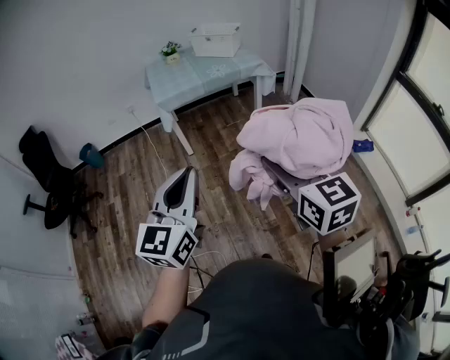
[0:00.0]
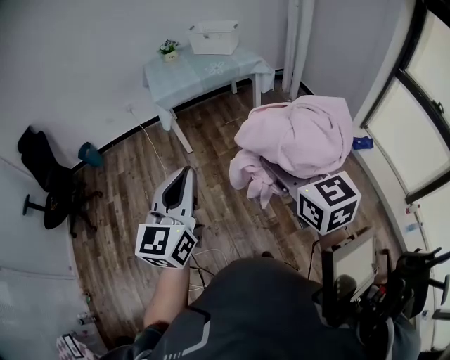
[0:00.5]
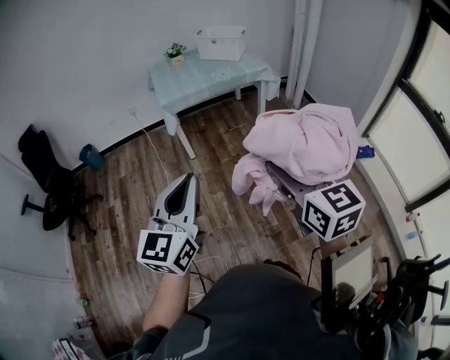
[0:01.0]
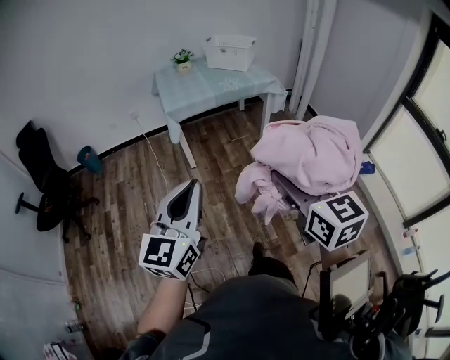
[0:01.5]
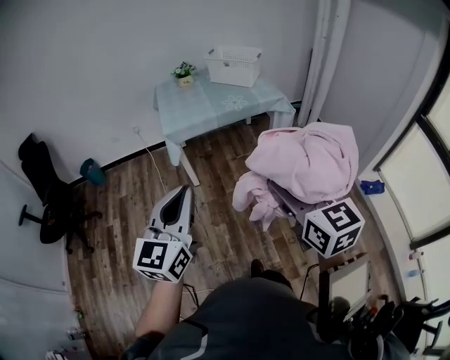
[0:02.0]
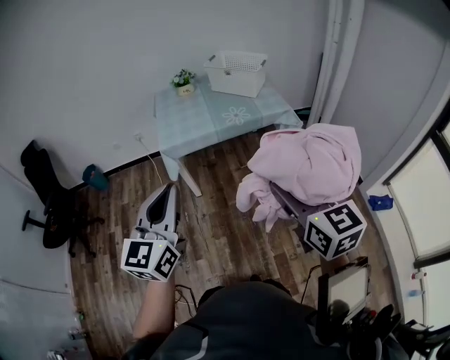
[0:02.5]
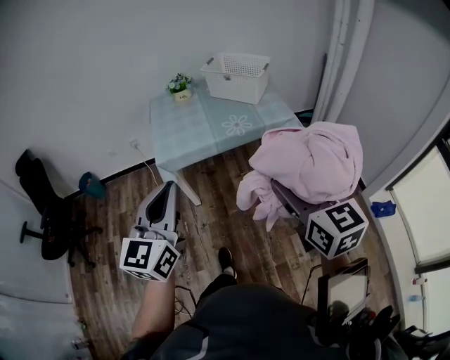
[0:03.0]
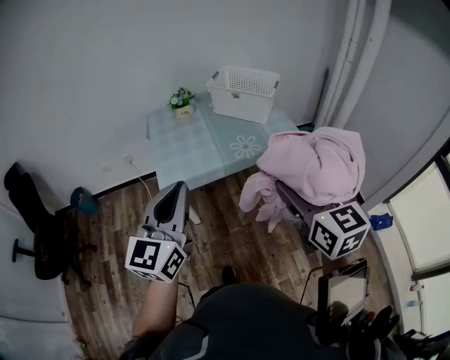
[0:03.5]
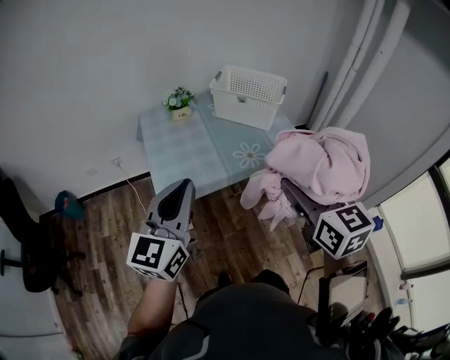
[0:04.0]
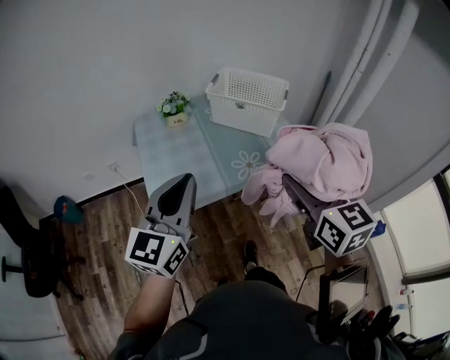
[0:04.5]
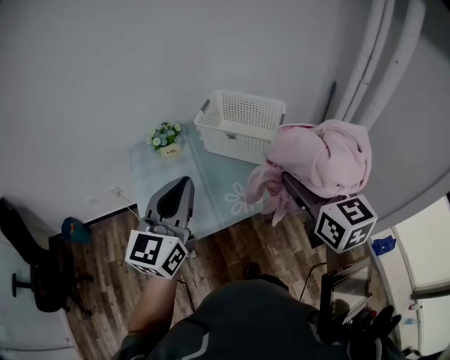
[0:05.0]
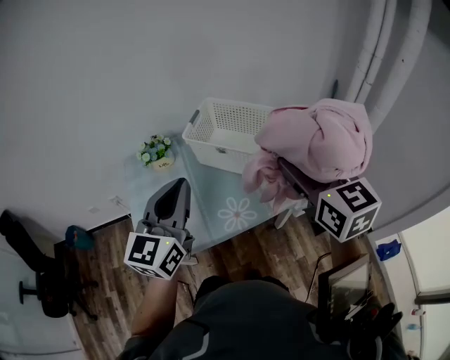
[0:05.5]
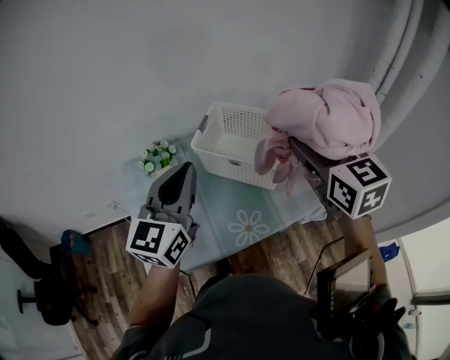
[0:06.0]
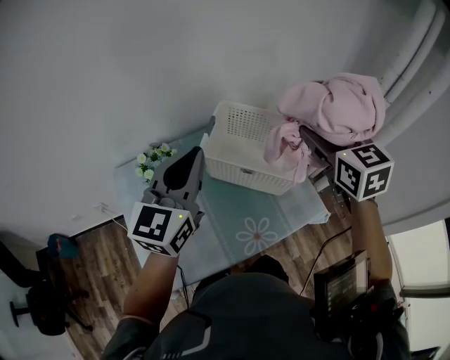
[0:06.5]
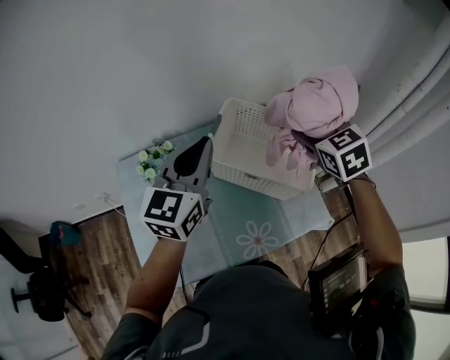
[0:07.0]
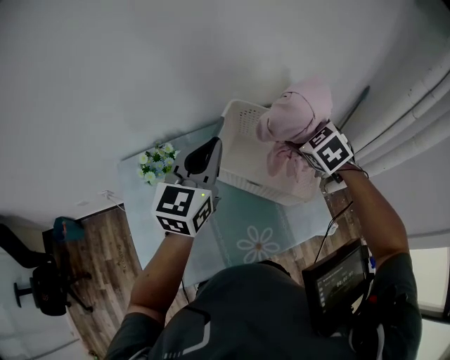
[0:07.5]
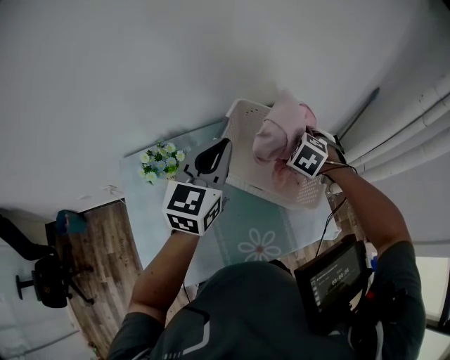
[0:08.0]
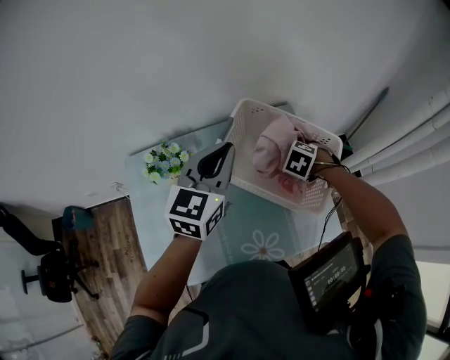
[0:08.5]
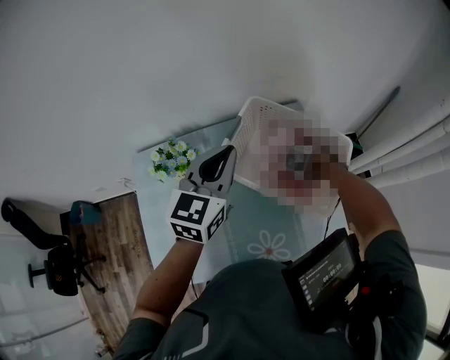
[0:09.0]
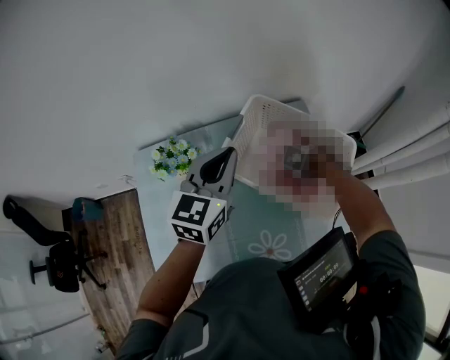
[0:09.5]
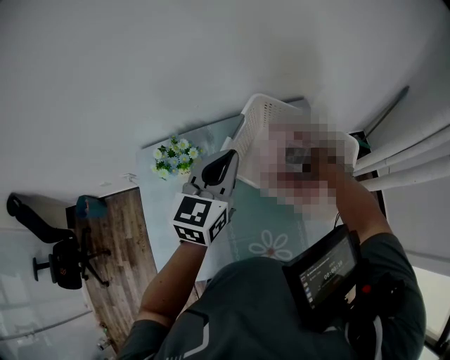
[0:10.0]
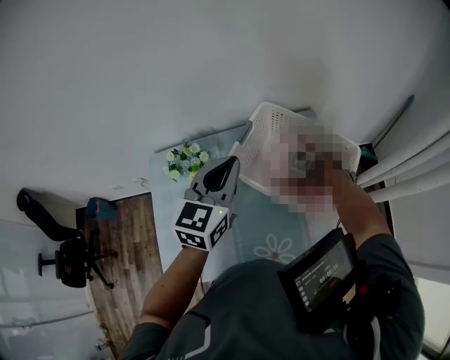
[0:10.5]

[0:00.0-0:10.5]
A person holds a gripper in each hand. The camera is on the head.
0:00.0 to 0:02.0: The grippers both shift forward by about 15 cm.
0:02.0 to 0:04.0: Both grippers move forward, approximately 35 cm.
0:04.0 to 0:06.5: The pair of grippers is taken forward, roughly 40 cm.
0:06.5 to 0:08.5: The left gripper shifts by roughly 15 cm. Meanwhile the right gripper moves downward, approximately 35 cm, and points its fingers roughly 60 degrees further downward.
0:08.5 to 0:10.5: The right gripper shifts some 10 cm downward.

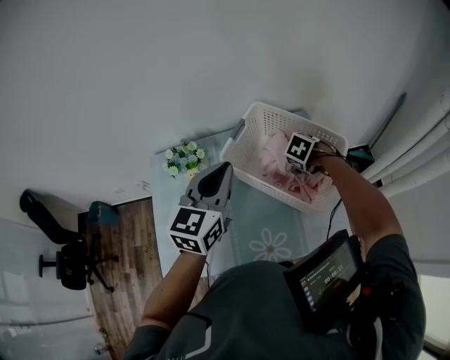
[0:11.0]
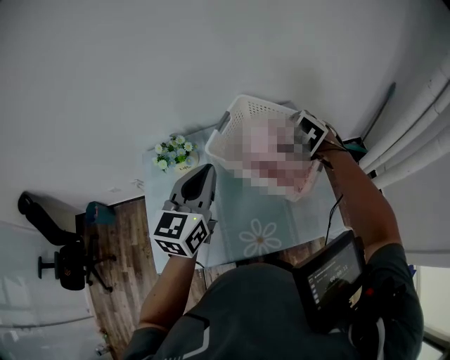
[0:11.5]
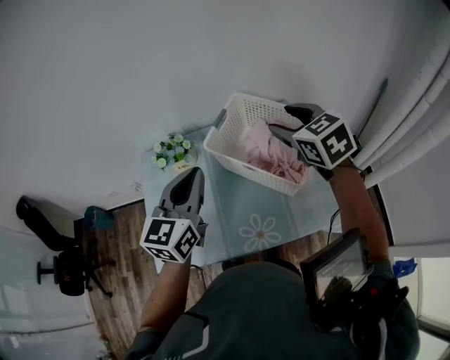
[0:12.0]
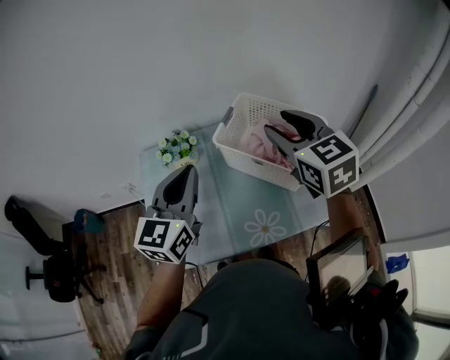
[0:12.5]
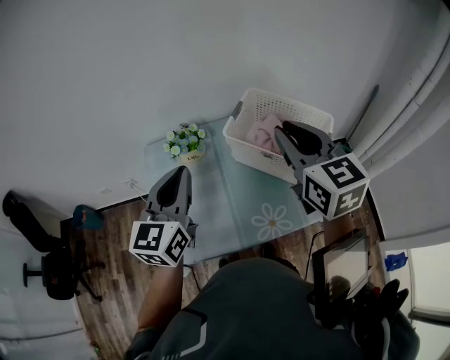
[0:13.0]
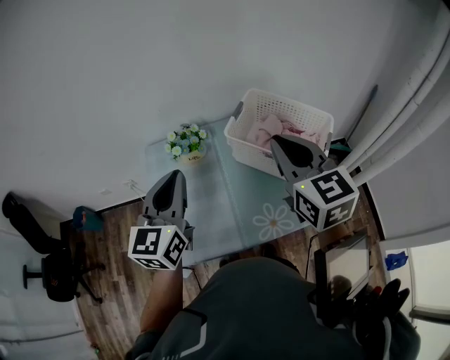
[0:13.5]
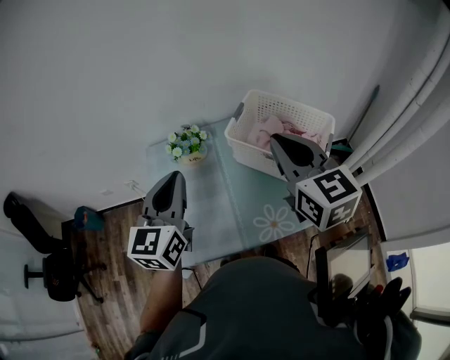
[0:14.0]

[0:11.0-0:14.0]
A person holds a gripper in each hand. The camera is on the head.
0:11.0 to 0:12.5: The right gripper goes some 30 cm upward, points its fingers roughly 60 degrees further upward, and closes up, while the left gripper changes place by about 15 cm.
0:12.5 to 0:14.0: The left gripper heads to the left, covering roughly 5 cm. The right gripper is displaced backward and to the left by some 10 cm, and closes up.

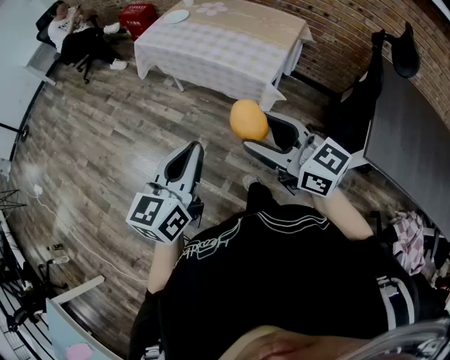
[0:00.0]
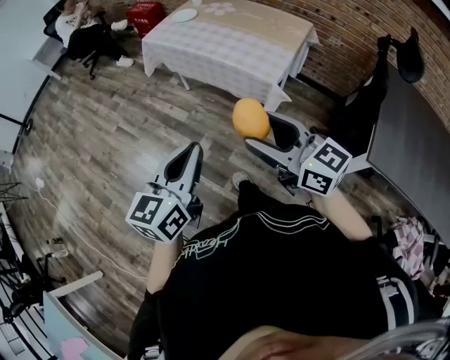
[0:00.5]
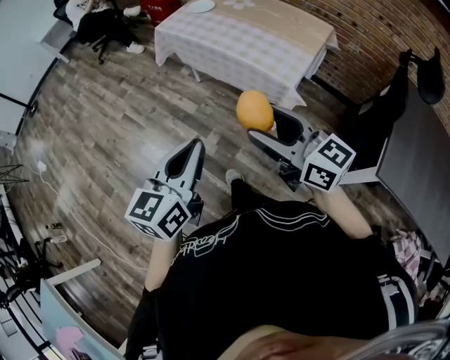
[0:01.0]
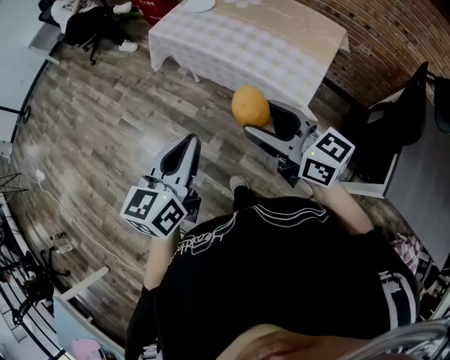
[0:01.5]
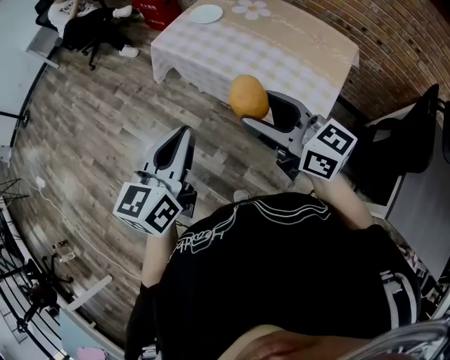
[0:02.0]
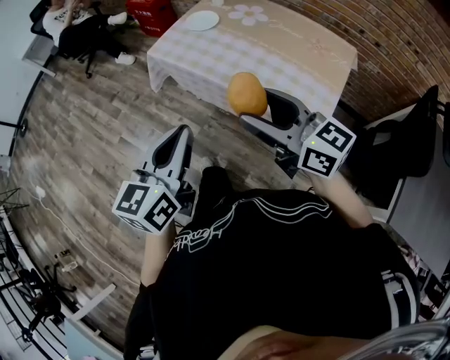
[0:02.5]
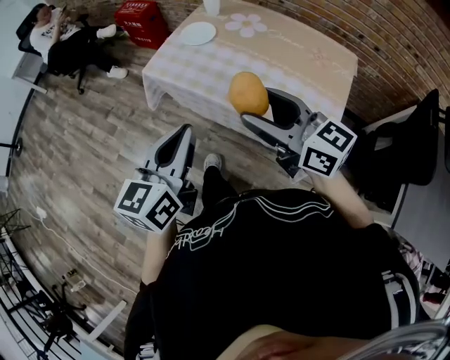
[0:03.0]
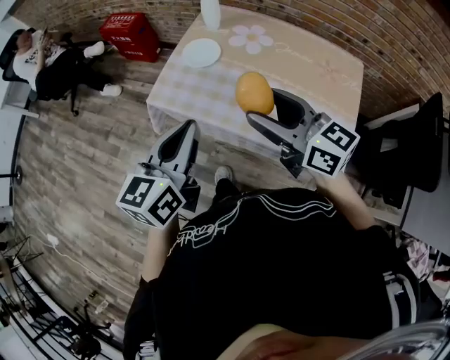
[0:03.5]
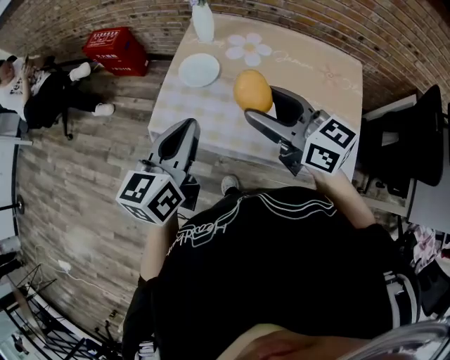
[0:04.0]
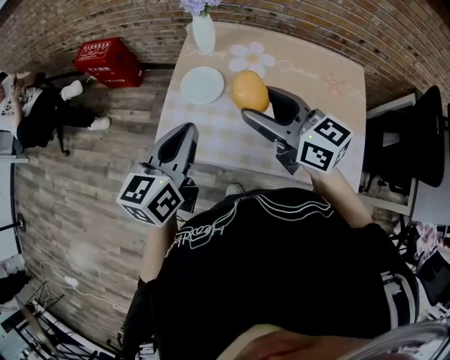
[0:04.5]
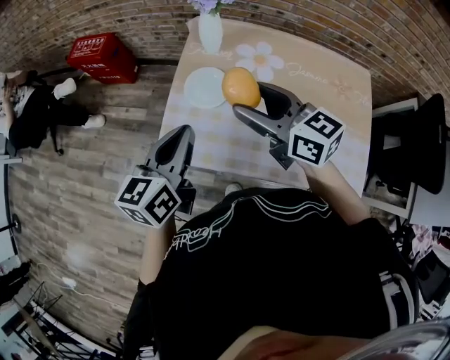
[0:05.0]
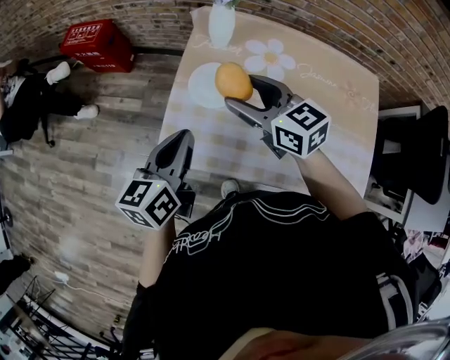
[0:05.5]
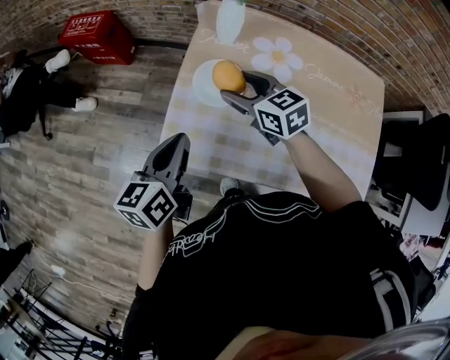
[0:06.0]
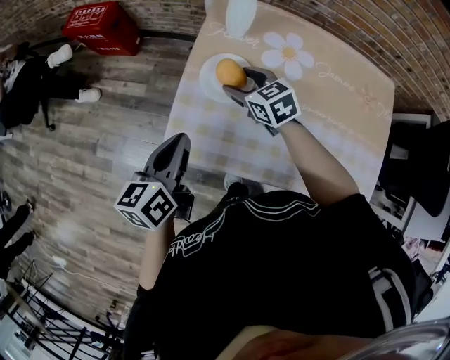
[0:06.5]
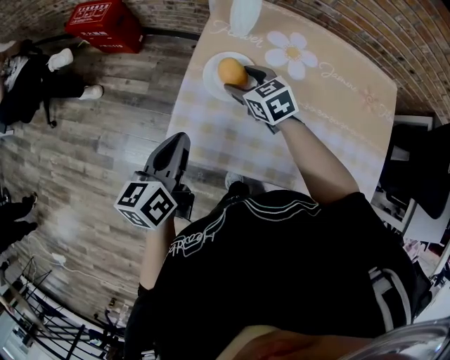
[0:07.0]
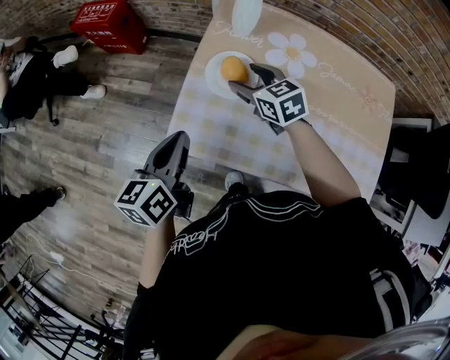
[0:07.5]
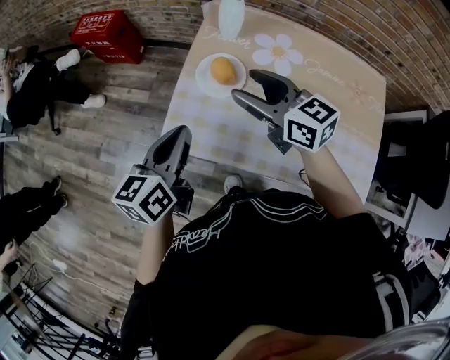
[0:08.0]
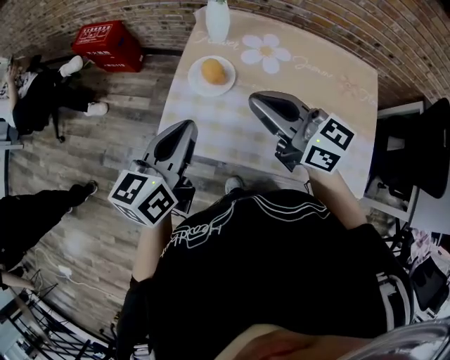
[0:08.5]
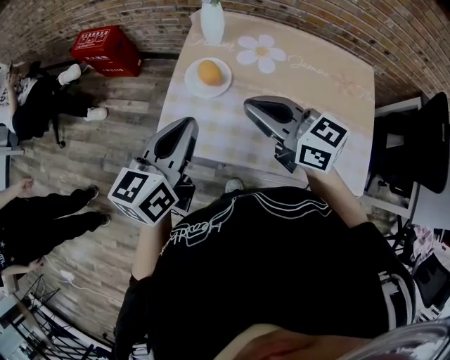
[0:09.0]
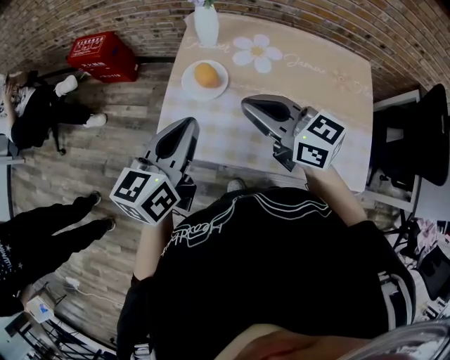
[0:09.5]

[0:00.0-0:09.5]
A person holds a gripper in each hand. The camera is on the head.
0:00.0 to 0:02.0: Both grippers move forward, about 35 cm.
0:02.0 to 0:04.0: The two grippers go roughly 40 cm forward. The left gripper changes its angle by approximately 20 degrees. The right gripper rotates approximately 20 degrees.
0:04.0 to 0:05.5: The grippers both shift forward, downward and to the left by some 25 cm.
0:05.5 to 0:07.5: The right gripper heads downward and forward, covering some 15 cm; the left gripper is displaced to the left by roughly 5 cm.
0:07.5 to 0:09.5: The left gripper heads upward and to the right, covering about 15 cm, and changes its angle by about 20 degrees. The right gripper moves upward and backward, approximately 25 cm, swivels some 30 degrees, and closes its fingers.

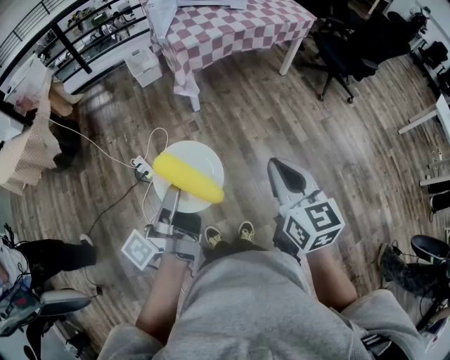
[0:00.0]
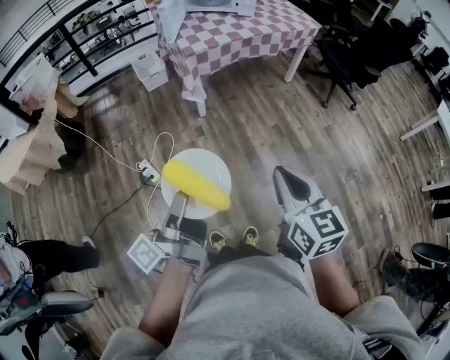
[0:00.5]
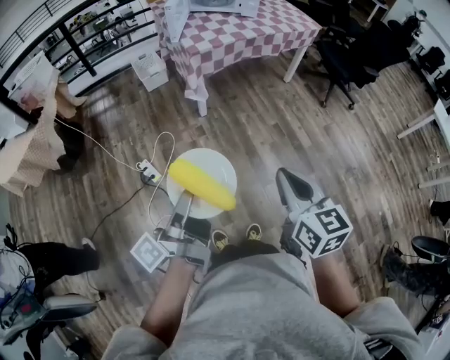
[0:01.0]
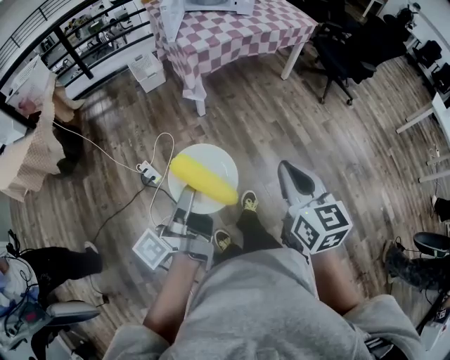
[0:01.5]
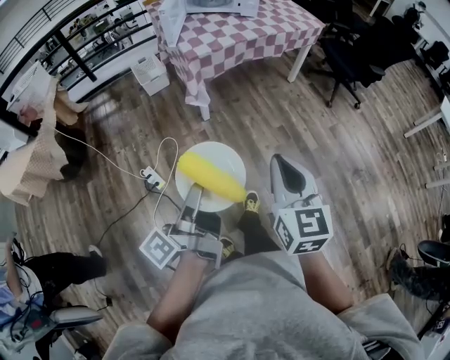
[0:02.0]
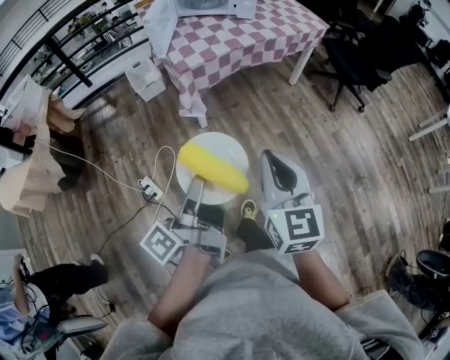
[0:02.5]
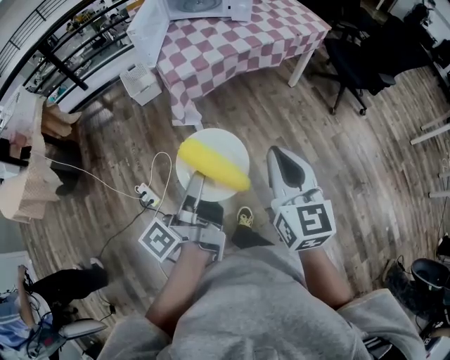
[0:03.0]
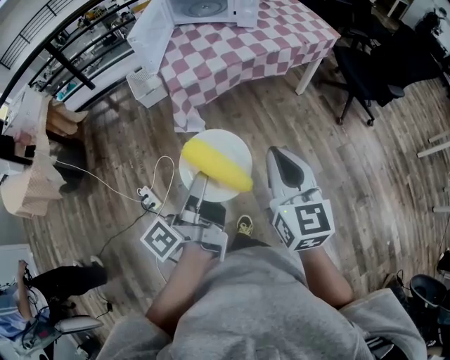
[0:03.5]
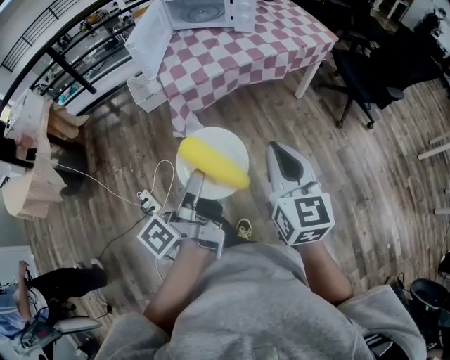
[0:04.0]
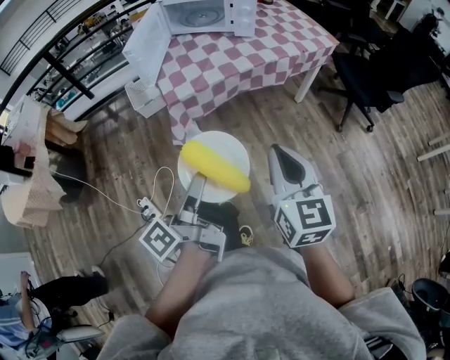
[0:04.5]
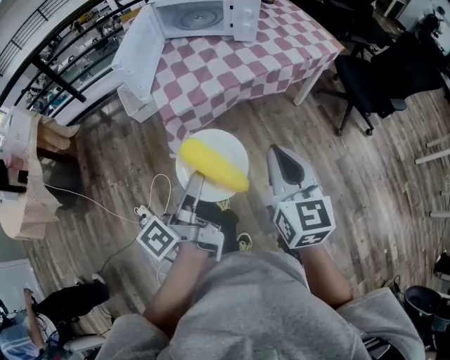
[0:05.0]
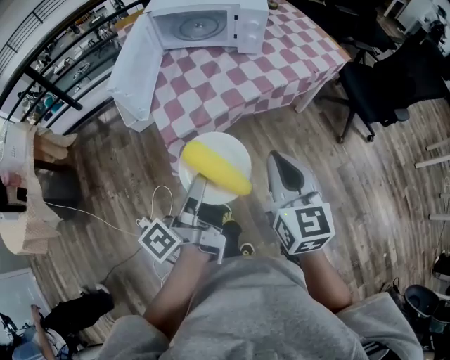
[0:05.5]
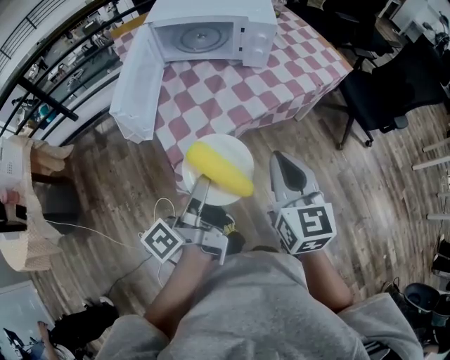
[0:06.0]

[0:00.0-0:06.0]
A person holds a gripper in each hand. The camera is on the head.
0:00.0 to 0:02.0: The right gripper goes approximately 10 cm to the left and forward. Meanwhile the left gripper is displaced forward by about 5 cm.
0:02.0 to 0:04.0: The right gripper shifts roughly 25 cm forward. The left gripper goes about 30 cm forward and to the right.
0:04.0 to 0:06.0: Both grippers travel together forward, some 30 cm.
